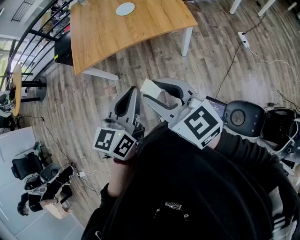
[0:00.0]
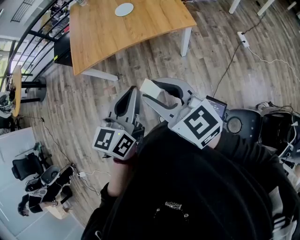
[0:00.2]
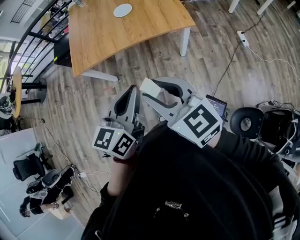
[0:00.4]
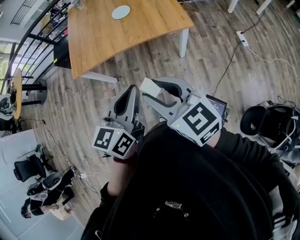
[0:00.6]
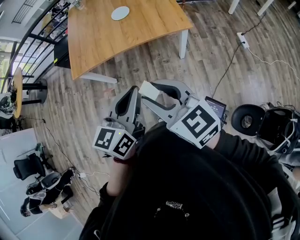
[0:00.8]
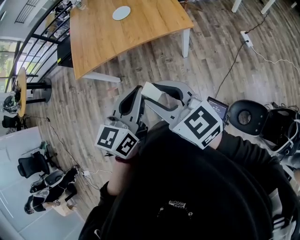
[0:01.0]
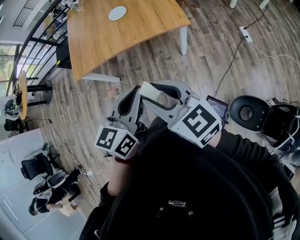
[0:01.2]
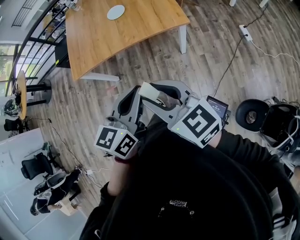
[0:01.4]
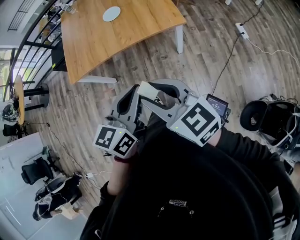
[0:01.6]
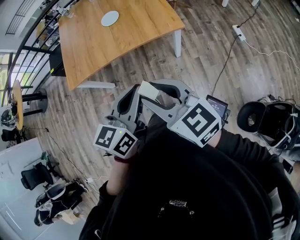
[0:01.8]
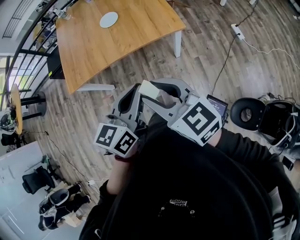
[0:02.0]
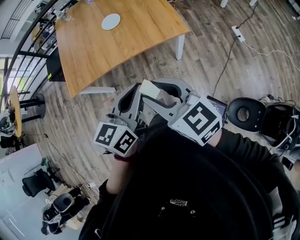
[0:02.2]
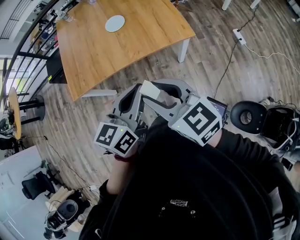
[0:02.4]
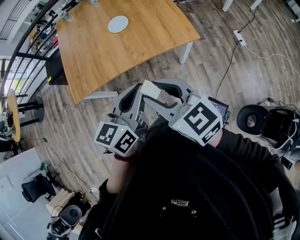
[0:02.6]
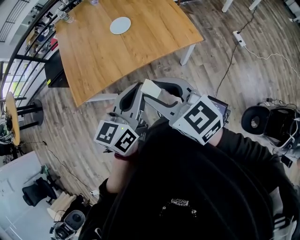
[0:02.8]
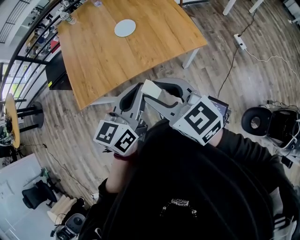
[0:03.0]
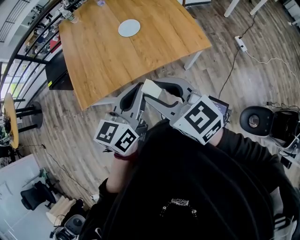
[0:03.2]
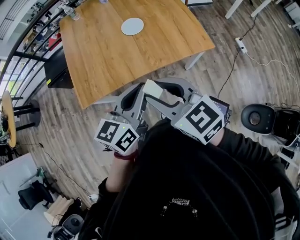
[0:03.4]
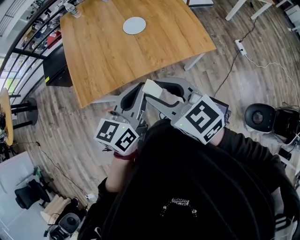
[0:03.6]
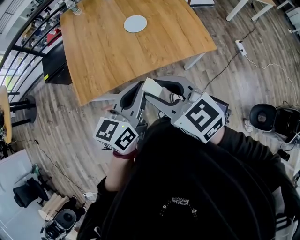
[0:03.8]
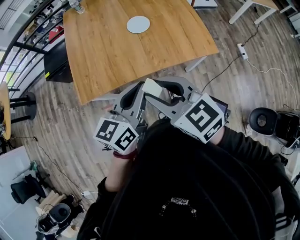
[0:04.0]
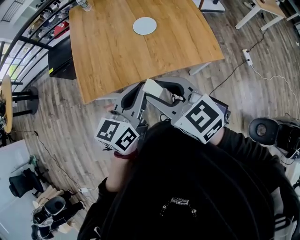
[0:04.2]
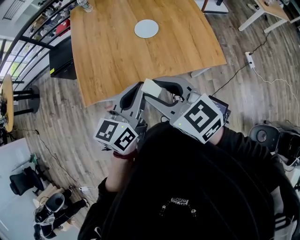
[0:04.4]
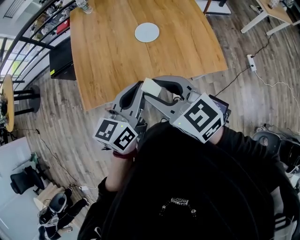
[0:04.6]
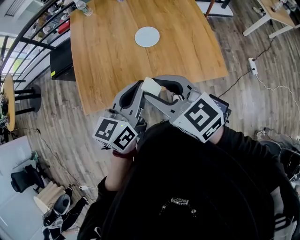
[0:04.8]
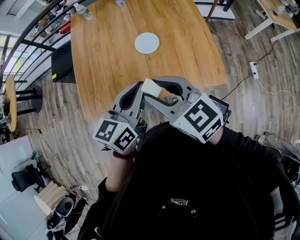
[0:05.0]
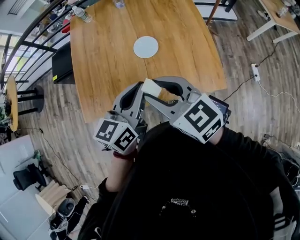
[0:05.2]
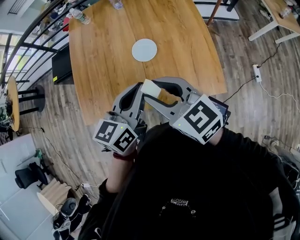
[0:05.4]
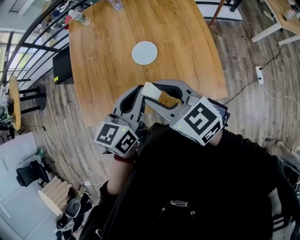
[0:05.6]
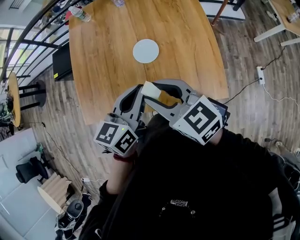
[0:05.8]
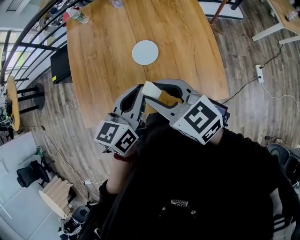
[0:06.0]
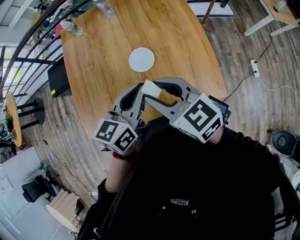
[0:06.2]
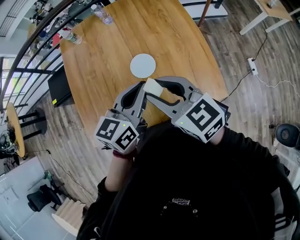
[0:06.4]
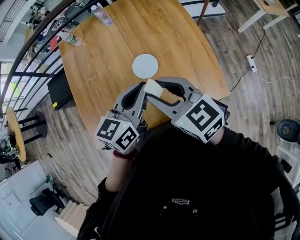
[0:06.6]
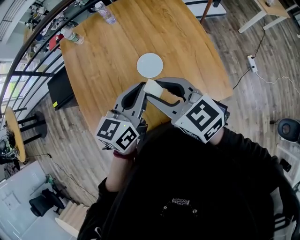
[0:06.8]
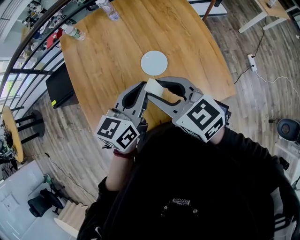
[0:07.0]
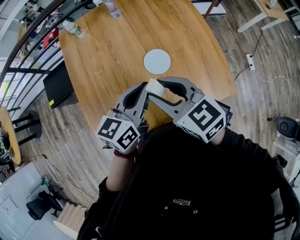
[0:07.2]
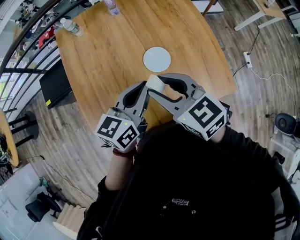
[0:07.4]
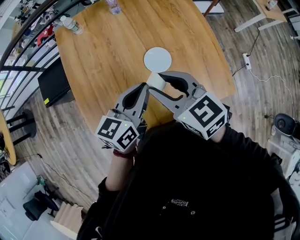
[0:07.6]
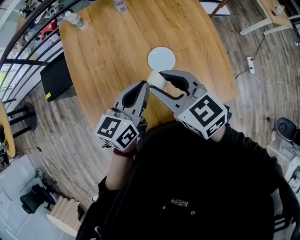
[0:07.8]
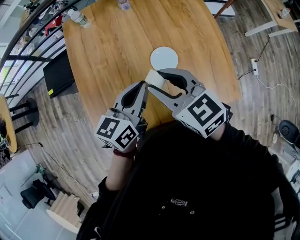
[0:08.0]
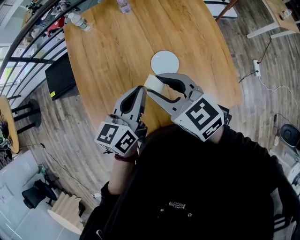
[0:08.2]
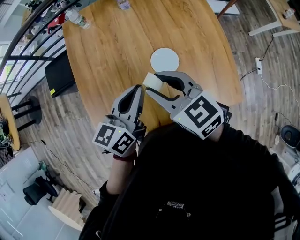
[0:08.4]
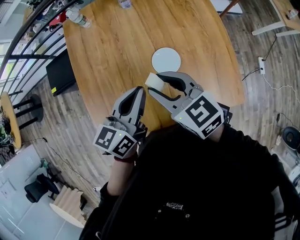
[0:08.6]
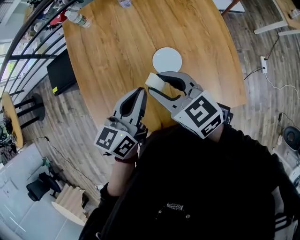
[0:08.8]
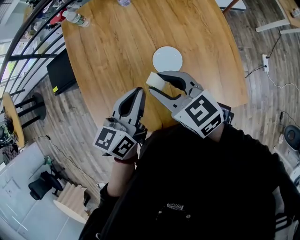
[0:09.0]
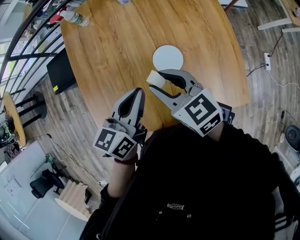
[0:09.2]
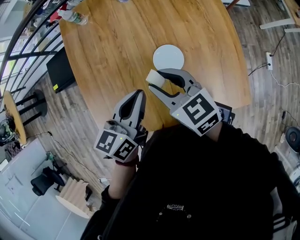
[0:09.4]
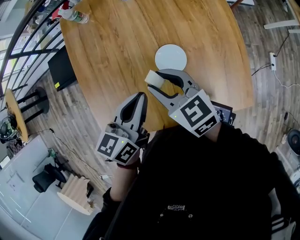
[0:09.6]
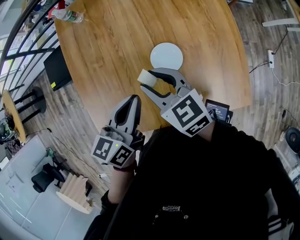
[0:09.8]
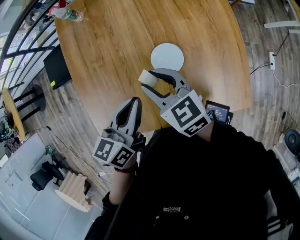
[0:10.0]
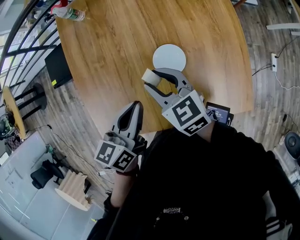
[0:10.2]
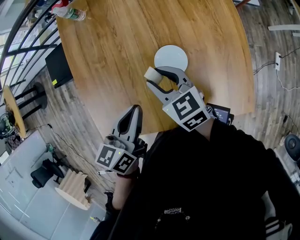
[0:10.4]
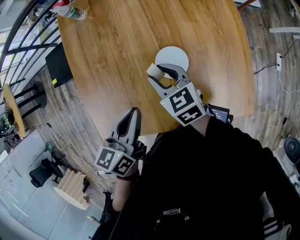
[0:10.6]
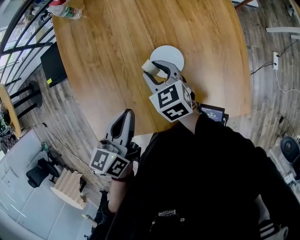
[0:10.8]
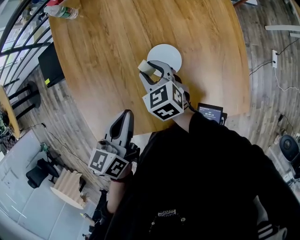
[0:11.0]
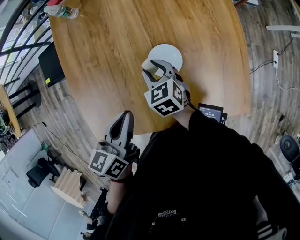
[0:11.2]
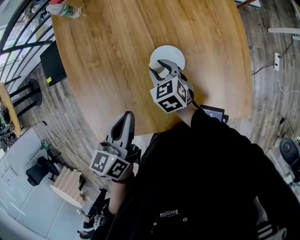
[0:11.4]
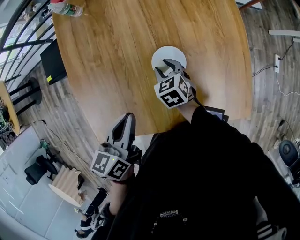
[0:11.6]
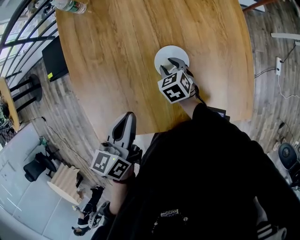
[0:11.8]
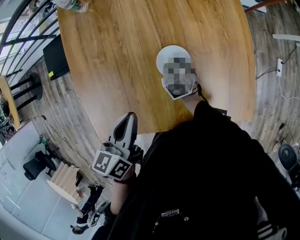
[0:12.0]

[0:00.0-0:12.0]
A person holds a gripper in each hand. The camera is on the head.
0:00.0 to 0:01.6: Both grippers travel together to the right, about 5 cm.
0:01.6 to 0:03.0: Both grippers move forward and to the left, about 20 cm.
0:03.0 to 0:04.4: The grippers both shift forward and to the left by some 10 cm.
0:04.4 to 0:06.0: The grippers both shift forward and to the right by some 20 cm.
0:06.0 to 0:07.6: Both grippers travel together to the left and forward, roughly 15 cm.
0:07.6 to 0:09.0: The right gripper shifts some 5 cm forward.
0:09.0 to 0:10.4: The right gripper is displaced downward by approximately 10 cm, while the left gripper shifts about 5 cm downward.
0:10.4 to 0:12.0: The right gripper travels downward by approximately 20 cm, and changes its angle by roughly 30 degrees.

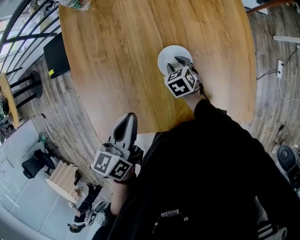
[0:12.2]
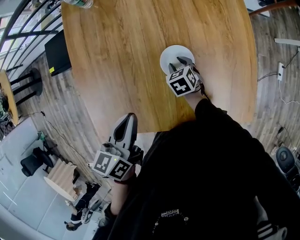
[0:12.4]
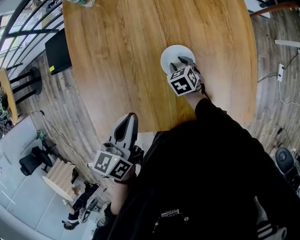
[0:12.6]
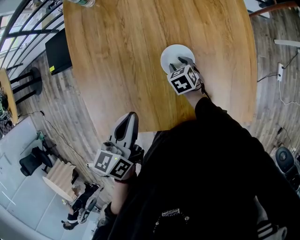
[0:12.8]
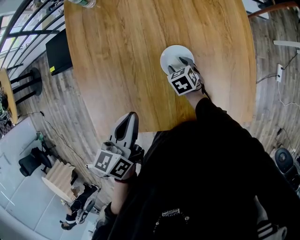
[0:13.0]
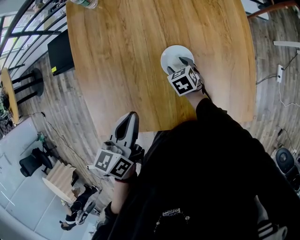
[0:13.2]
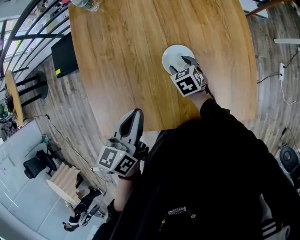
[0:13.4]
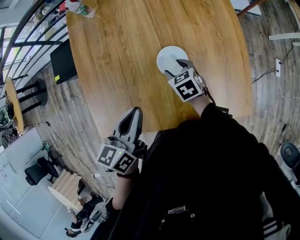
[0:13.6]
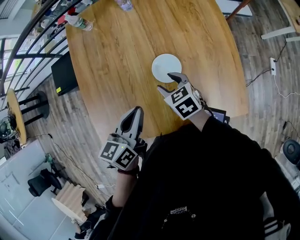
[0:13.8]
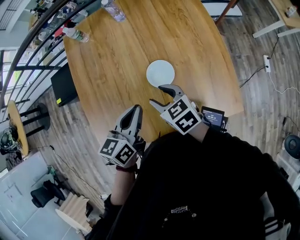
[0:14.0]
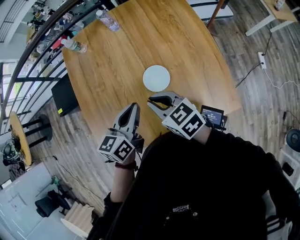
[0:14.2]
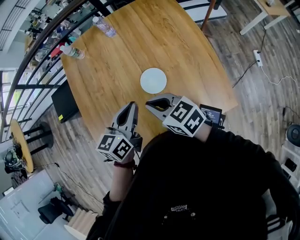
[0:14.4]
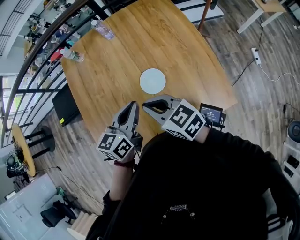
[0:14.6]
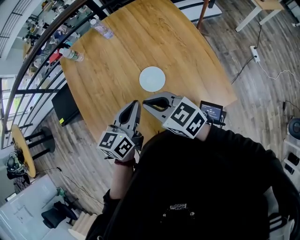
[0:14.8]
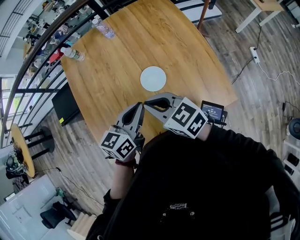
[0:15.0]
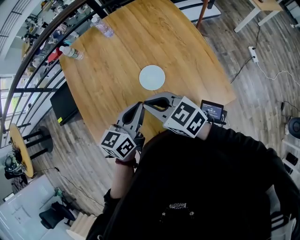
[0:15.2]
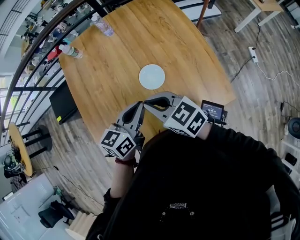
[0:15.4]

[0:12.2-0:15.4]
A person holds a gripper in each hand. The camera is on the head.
0:12.2 to 0:13.8: The right gripper heads upward and backward, covering some 15 cm.
0:13.8 to 0:15.4: The left gripper turns by some 20 degrees. Meanwhile the right gripper is displaced upward by approximately 15 cm, swivels approximately 20 degrees, and closes up.

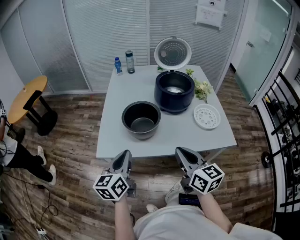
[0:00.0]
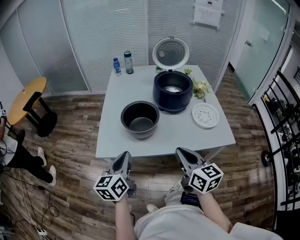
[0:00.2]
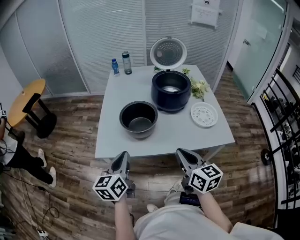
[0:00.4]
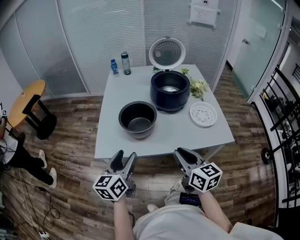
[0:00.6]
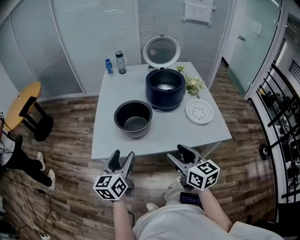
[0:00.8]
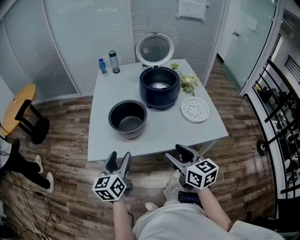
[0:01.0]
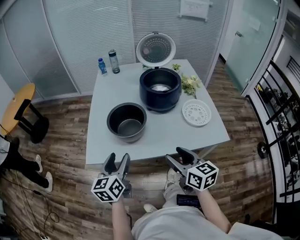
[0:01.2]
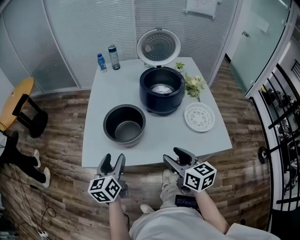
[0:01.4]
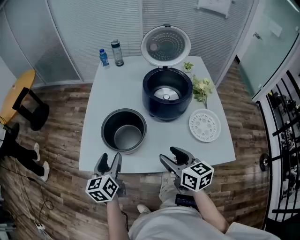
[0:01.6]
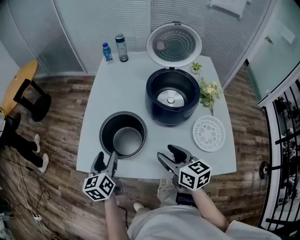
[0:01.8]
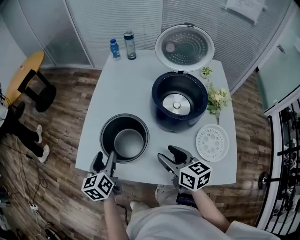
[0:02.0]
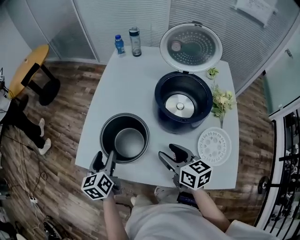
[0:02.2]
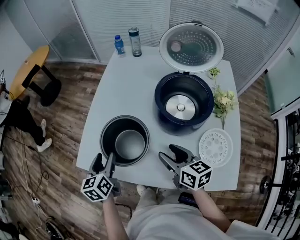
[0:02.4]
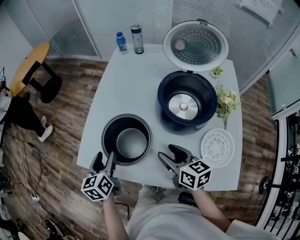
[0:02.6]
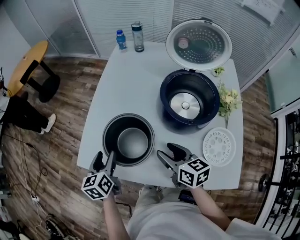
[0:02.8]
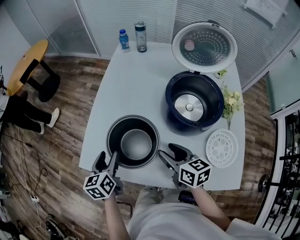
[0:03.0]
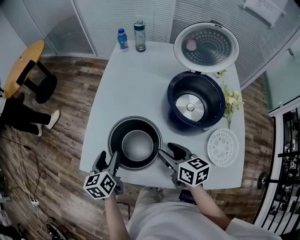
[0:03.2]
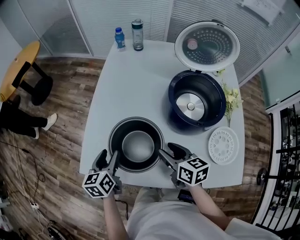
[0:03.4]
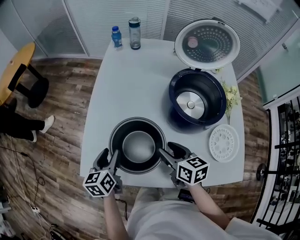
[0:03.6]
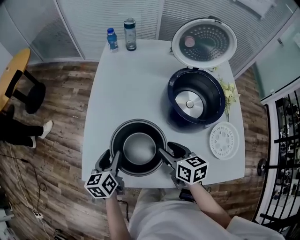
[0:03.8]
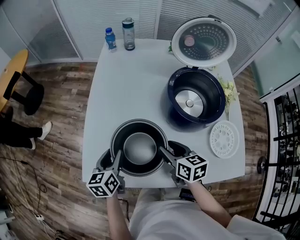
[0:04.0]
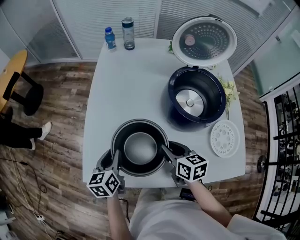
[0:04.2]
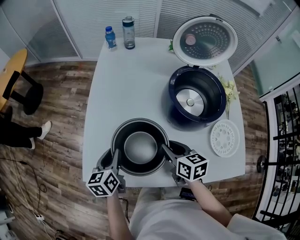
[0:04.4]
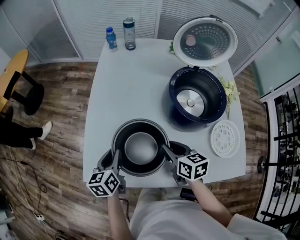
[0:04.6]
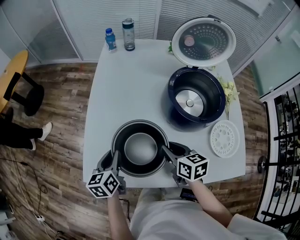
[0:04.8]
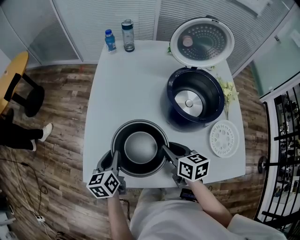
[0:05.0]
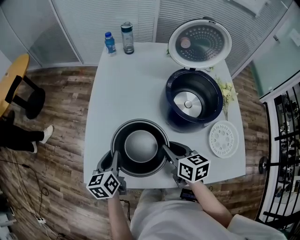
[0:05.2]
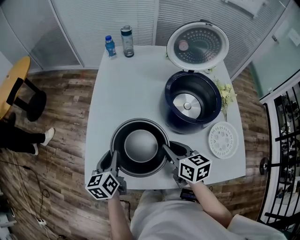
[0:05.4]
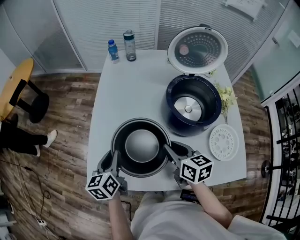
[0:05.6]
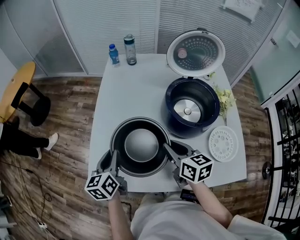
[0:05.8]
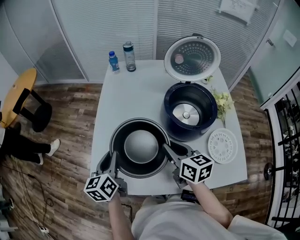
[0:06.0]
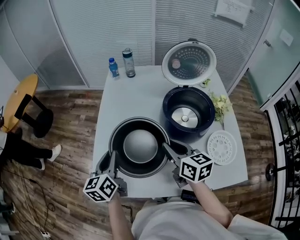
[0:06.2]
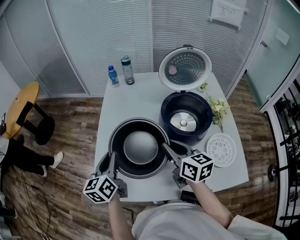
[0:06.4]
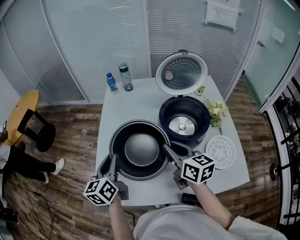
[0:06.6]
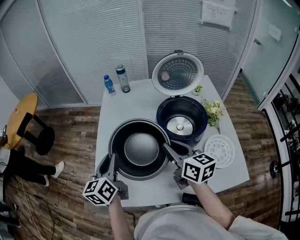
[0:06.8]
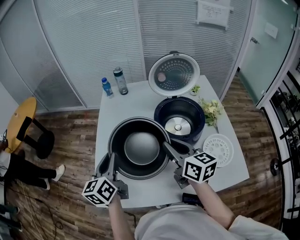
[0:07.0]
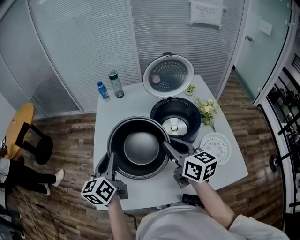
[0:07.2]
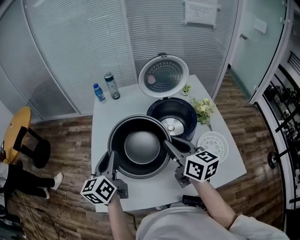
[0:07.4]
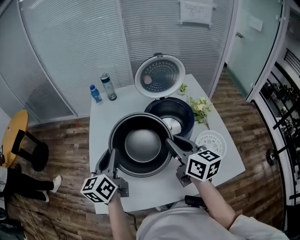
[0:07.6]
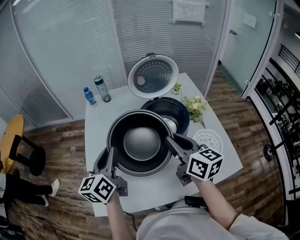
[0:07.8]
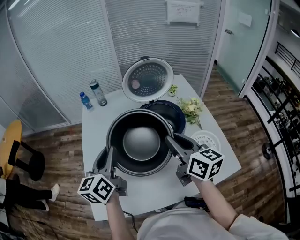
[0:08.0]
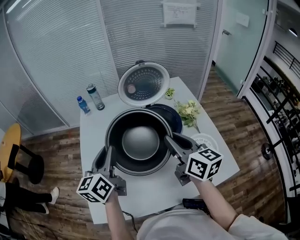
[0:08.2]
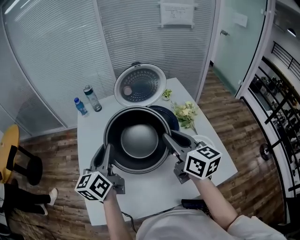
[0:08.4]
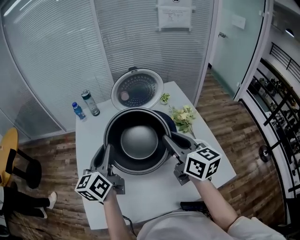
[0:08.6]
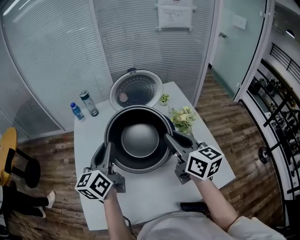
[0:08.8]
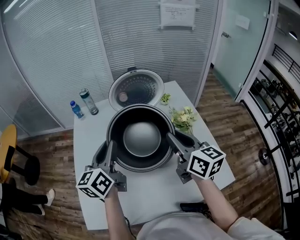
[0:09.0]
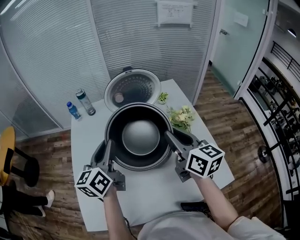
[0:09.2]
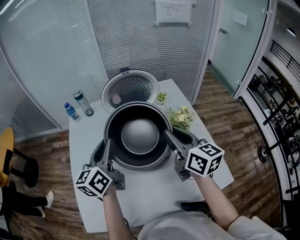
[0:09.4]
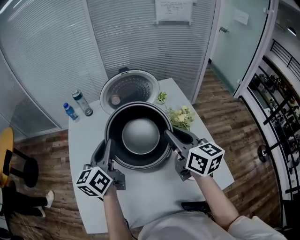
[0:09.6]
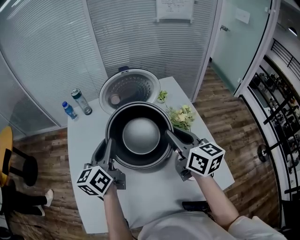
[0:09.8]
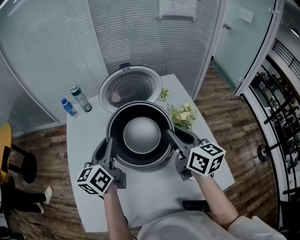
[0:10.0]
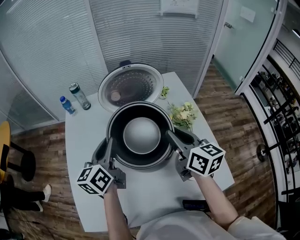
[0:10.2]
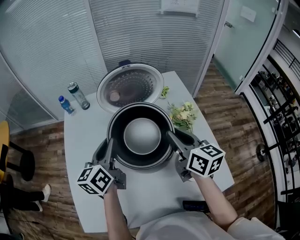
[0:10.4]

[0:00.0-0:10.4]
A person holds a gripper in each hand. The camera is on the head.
0:00.0 to 0:01.4: The left gripper moves forward and downward, approximately 10 cm, and opens. The right gripper heads forward, downward and to the right, covering about 10 cm, and opens its fingers.
0:01.4 to 0:03.0: The right gripper shifts some 20 cm forward, and turns by approximately 20 degrees. Meanwhile the left gripper travels forward and downward by about 15 cm, and rotates roughly 20 degrees.
0:03.0 to 0:04.4: The left gripper travels forward by some 5 cm, and closes, while the right gripper shifts by about 5 cm, and closes.
0:04.4 to 0:06.0: Both grippers move upward, some 10 cm.
0:06.0 to 0:07.4: Both grippers move upward and to the right, approximately 15 cm.
0:07.4 to 0:09.0: The two grippers go approximately 15 cm to the right and forward.
0:09.0 to 0:10.4: Both grippers travel together forward and downward, roughly 10 cm.
